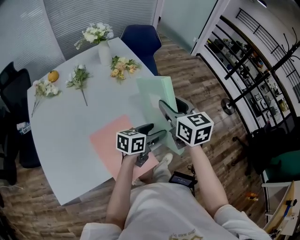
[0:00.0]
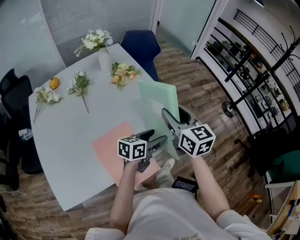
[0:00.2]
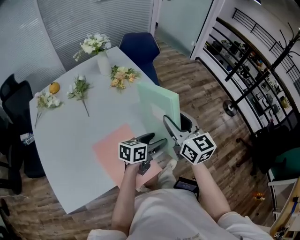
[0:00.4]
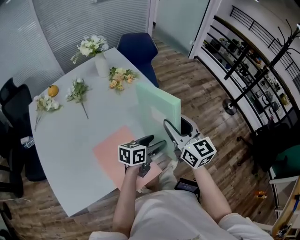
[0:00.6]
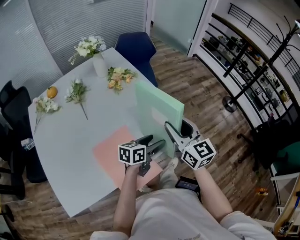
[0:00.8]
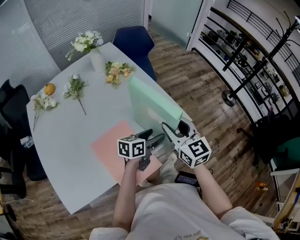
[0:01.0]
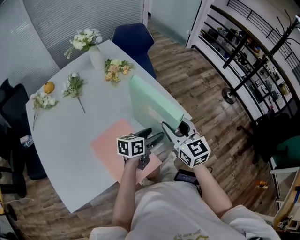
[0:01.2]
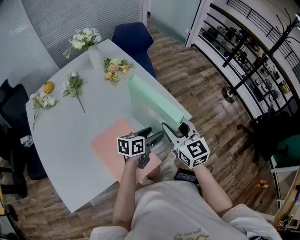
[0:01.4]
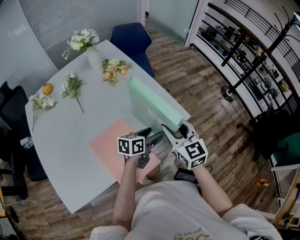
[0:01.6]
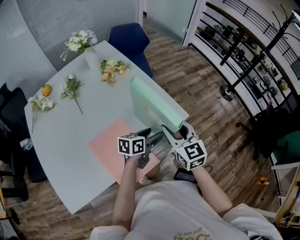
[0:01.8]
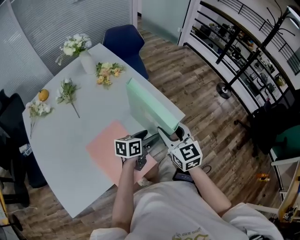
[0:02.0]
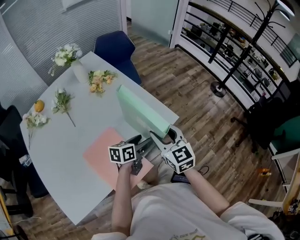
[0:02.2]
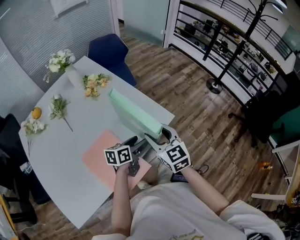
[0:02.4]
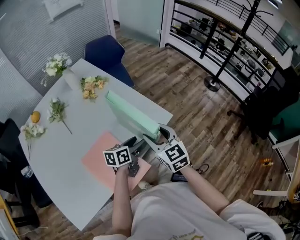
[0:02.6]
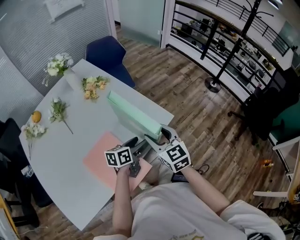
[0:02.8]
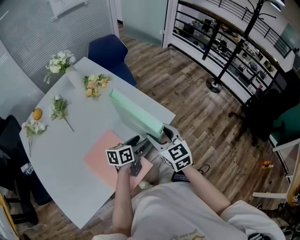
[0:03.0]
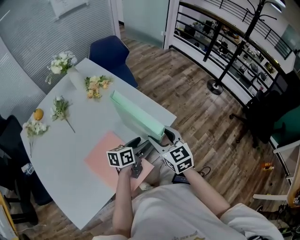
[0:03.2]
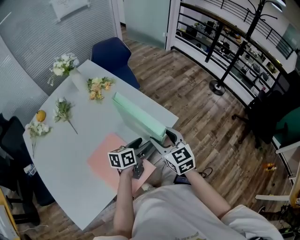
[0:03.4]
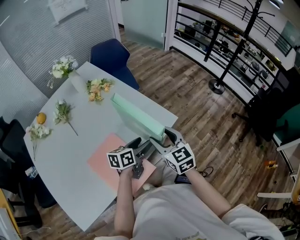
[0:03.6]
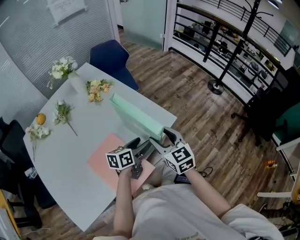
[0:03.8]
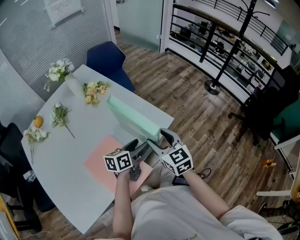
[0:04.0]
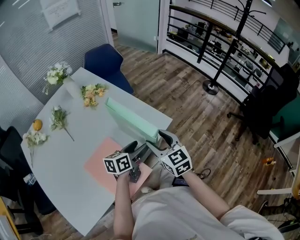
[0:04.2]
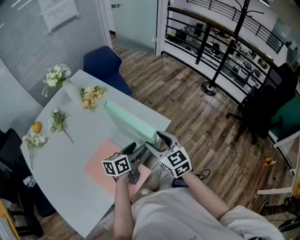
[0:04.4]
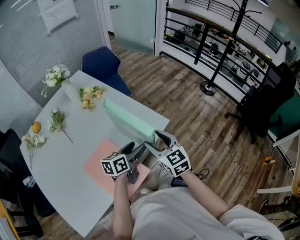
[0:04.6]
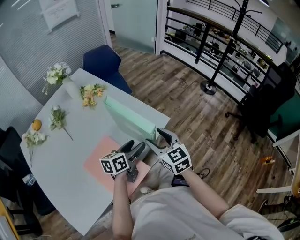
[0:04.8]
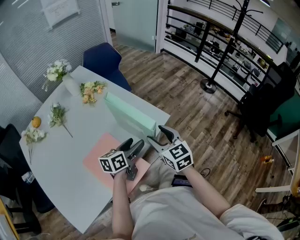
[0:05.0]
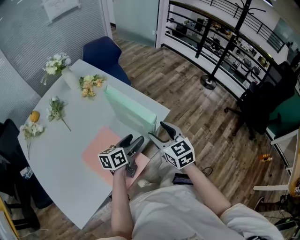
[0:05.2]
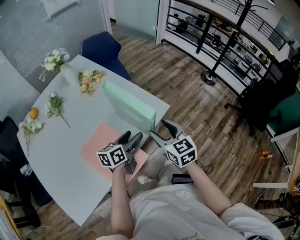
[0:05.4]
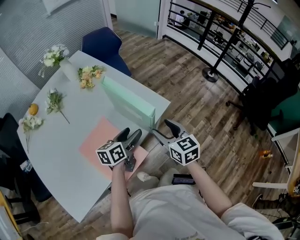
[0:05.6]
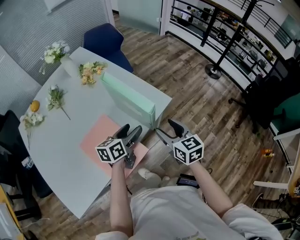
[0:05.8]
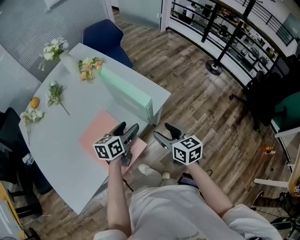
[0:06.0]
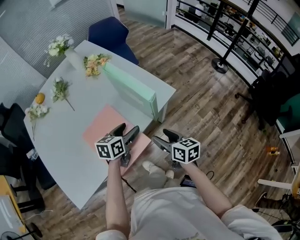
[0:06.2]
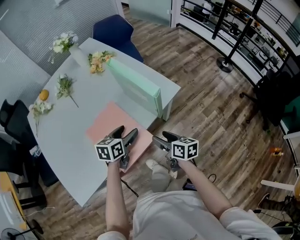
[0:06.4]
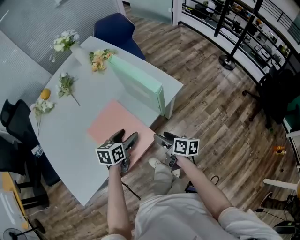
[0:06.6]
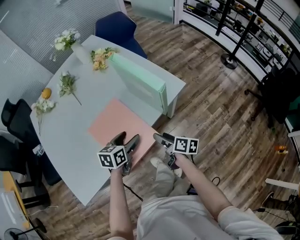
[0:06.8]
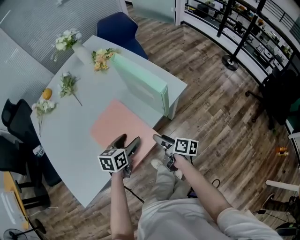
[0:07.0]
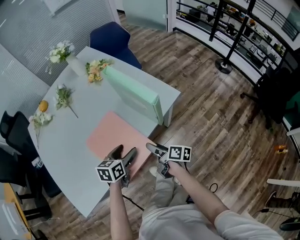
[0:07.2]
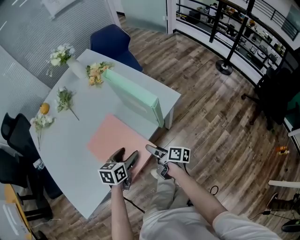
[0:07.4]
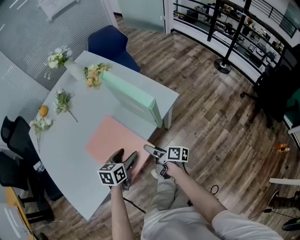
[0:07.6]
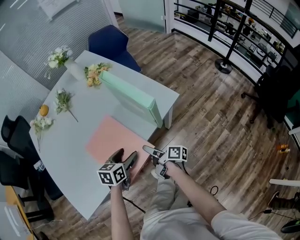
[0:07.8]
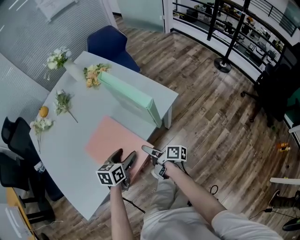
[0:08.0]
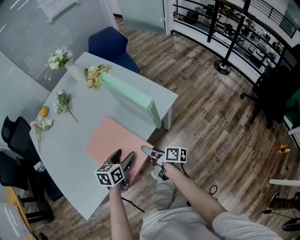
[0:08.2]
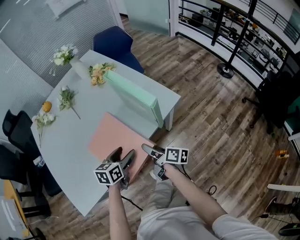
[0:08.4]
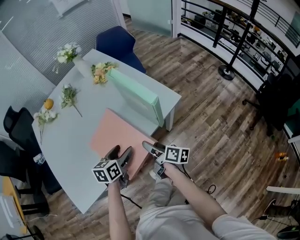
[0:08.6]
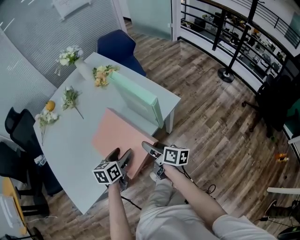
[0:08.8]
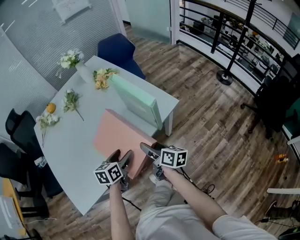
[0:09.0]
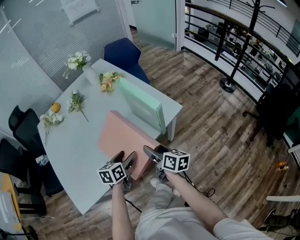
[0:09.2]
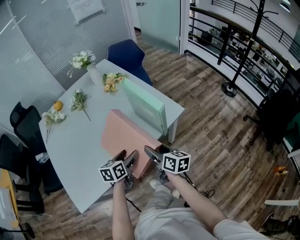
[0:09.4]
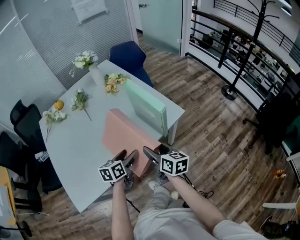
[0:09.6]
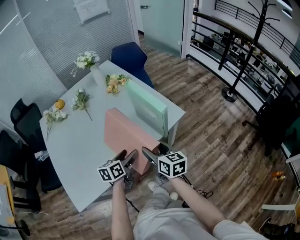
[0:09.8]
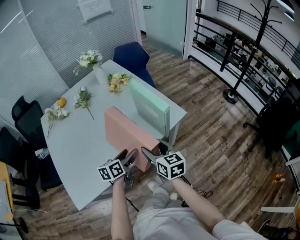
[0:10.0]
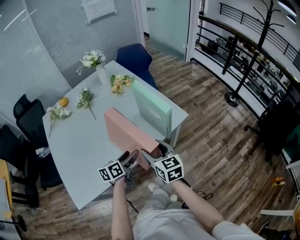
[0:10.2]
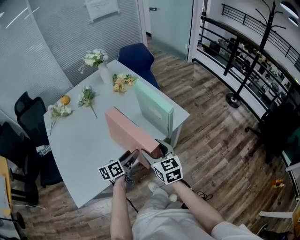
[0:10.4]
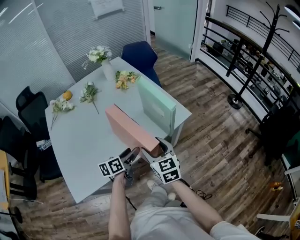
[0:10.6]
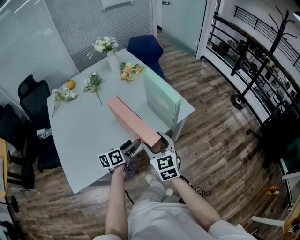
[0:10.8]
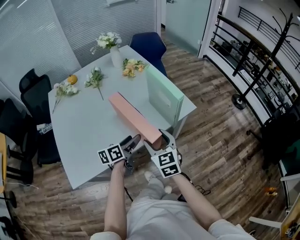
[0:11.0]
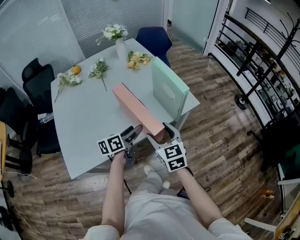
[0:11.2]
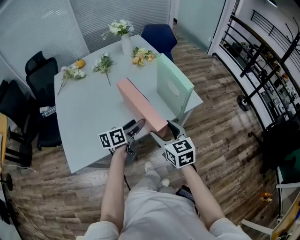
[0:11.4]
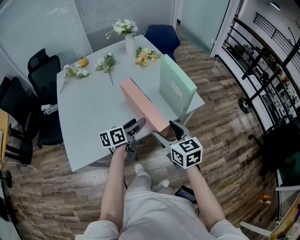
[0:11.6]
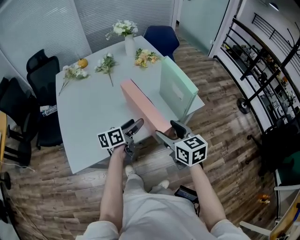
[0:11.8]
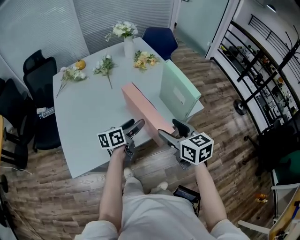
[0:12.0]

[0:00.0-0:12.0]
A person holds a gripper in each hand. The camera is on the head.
0:00.0 to 0:01.6: The left gripper moves downward, about 5 cm; the right gripper heads downward, backward and to the right, covering some 10 cm.
0:01.6 to 0:04.4: The grippers make only small movements.
0:04.4 to 0:06.0: The right gripper goes roughly 10 cm backward, downward and to the right, and swivels approximately 20 degrees.
0:06.0 to 0:07.6: The left gripper travels backward, to the left and downward by about 15 cm. The right gripper travels downward and to the left by some 20 cm, and rotates around the line of its fingers by some 50 degrees, clockwise from behind.
0:07.6 to 0:09.0: The right gripper heads upward, covering roughly 10 cm, and rotates roughly 20 degrees.
0:09.0 to 0:10.4: The right gripper goes some 10 cm upward, and twists approximately 50 degrees counterclockwise, seen from behind. Meanwhile the left gripper swivels about 20 degrees.
0:10.4 to 0:12.0: The right gripper heads upward, covering about 5 cm; the left gripper heads upward and to the left, covering some 10 cm.

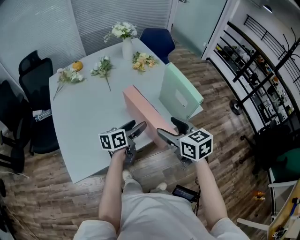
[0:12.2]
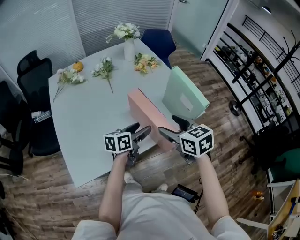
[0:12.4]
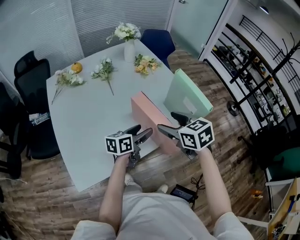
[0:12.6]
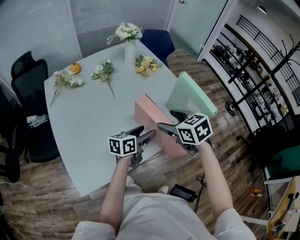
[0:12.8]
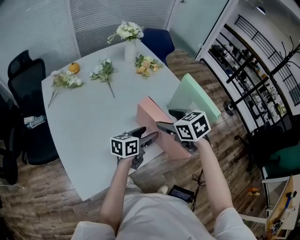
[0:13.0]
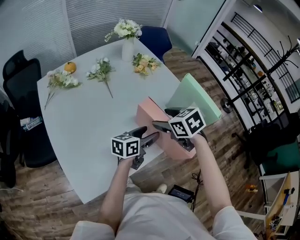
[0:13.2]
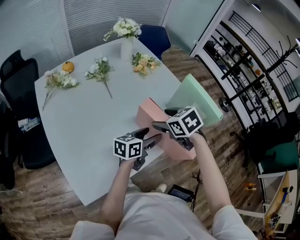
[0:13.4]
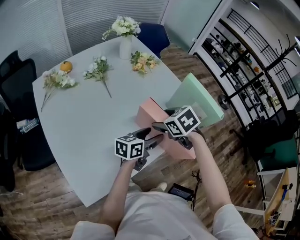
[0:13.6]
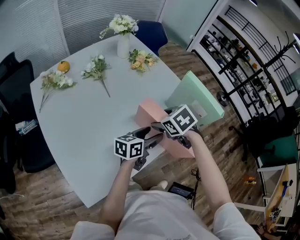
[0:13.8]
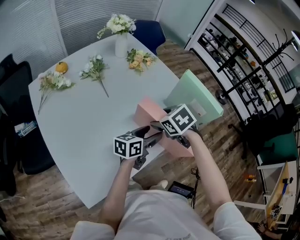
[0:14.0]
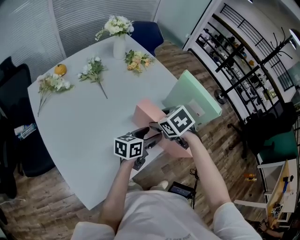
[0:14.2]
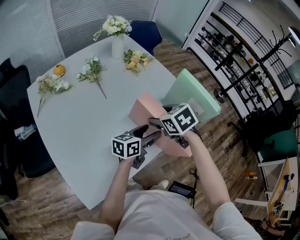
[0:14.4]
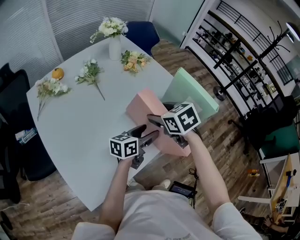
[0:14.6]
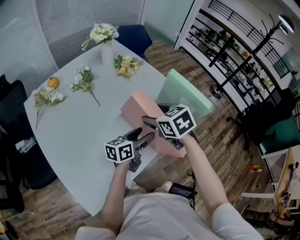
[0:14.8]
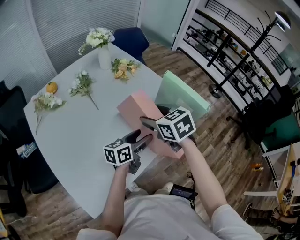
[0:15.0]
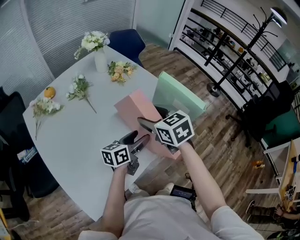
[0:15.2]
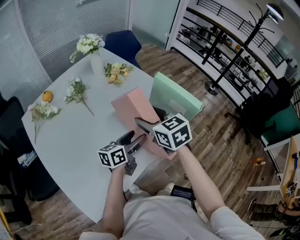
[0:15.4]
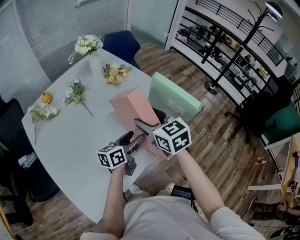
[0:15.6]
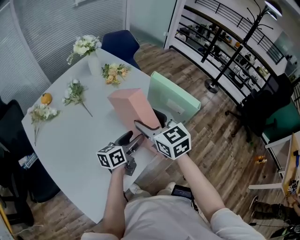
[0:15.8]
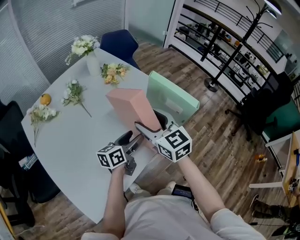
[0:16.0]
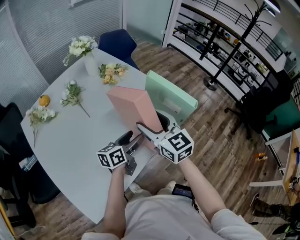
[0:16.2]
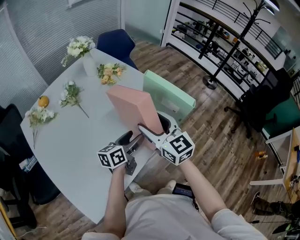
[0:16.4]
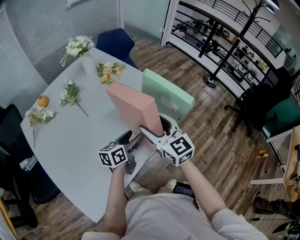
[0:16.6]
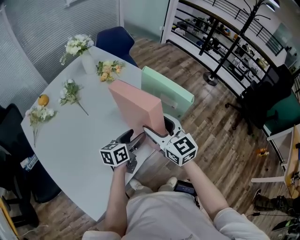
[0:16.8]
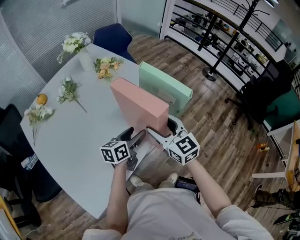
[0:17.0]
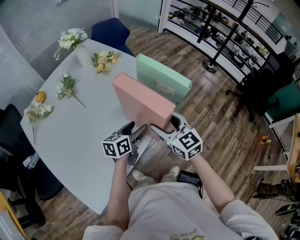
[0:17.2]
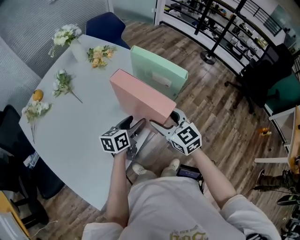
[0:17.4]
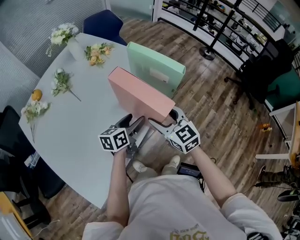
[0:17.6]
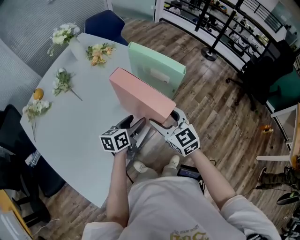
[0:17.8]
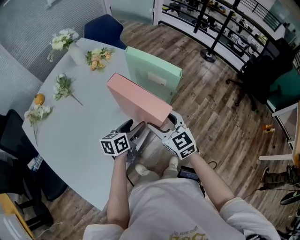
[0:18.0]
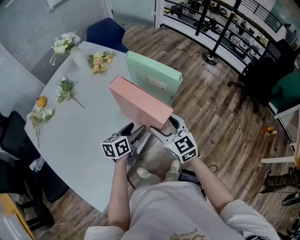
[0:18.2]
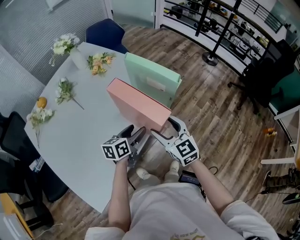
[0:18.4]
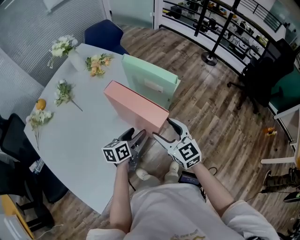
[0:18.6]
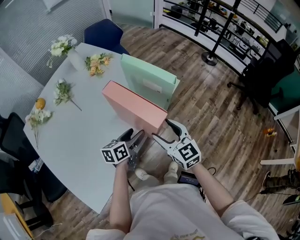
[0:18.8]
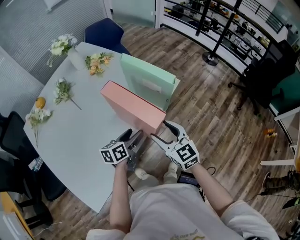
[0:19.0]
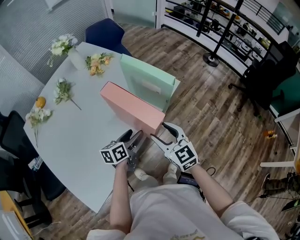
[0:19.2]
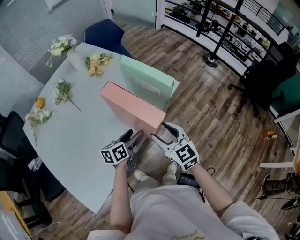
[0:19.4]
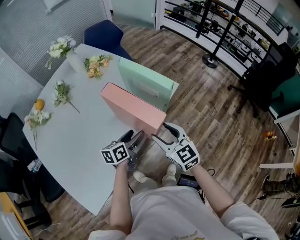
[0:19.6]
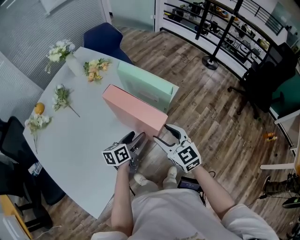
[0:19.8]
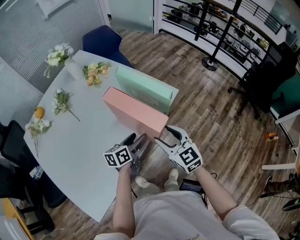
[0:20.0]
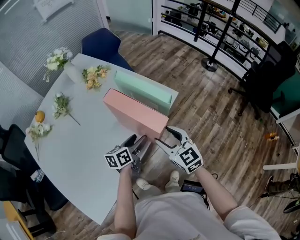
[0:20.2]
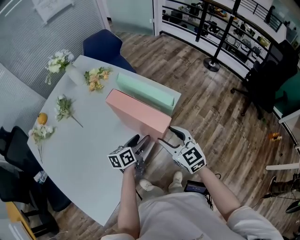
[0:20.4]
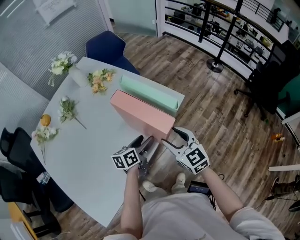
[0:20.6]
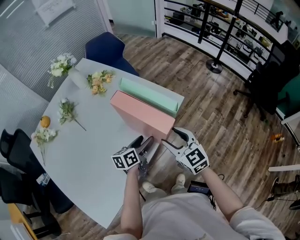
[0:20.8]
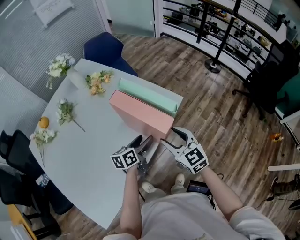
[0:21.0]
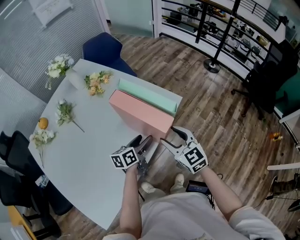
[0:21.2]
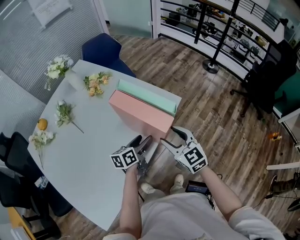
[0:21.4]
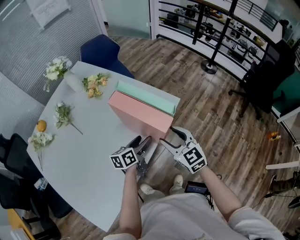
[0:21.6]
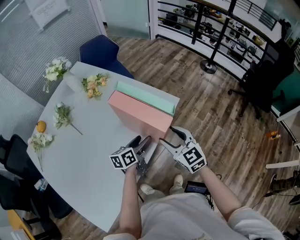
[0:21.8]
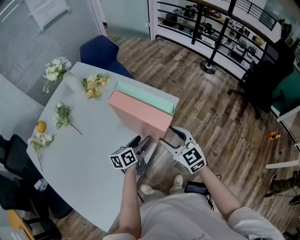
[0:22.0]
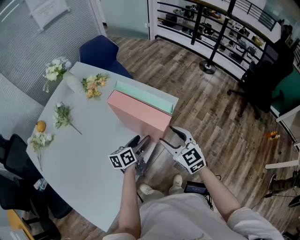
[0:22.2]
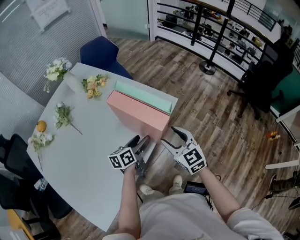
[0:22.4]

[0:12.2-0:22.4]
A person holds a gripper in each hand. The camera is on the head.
0:12.2 to 0:13.6: The right gripper moves forward, to the left and downward, roughly 20 cm, and points its fingers about 30 degrees further downward. The left gripper turns by some 20 degrees.
0:13.6 to 0:15.2: The right gripper is displaced upward by roughly 10 cm, and turns by approximately 30 degrees.
0:15.2 to 0:16.6: The right gripper is displaced to the right by roughly 10 cm, and turns by some 30 degrees.
0:16.6 to 0:18.0: The right gripper is displaced downward, to the right and backward by approximately 10 cm, while the left gripper shifts by roughly 5 cm.
0:18.0 to 0:19.4: The grippers stay close to where they were, moving slightly.
0:19.4 to 0:21.0: The two grippers go about 10 cm forward.
0:21.0 to 0:22.4: The grippers make only small movements.

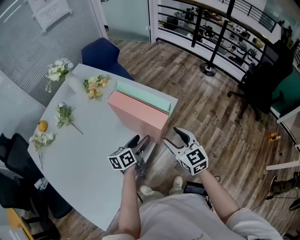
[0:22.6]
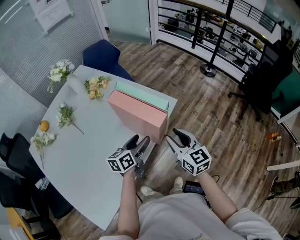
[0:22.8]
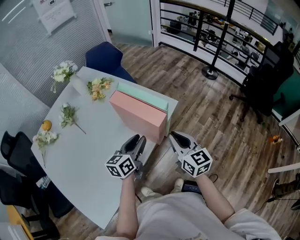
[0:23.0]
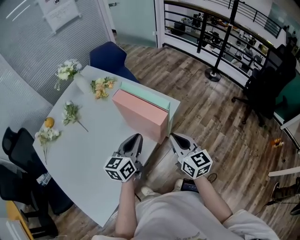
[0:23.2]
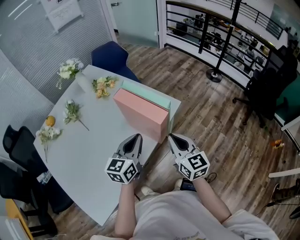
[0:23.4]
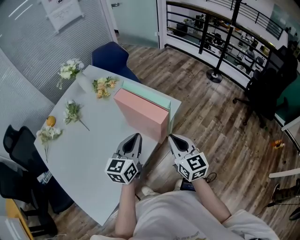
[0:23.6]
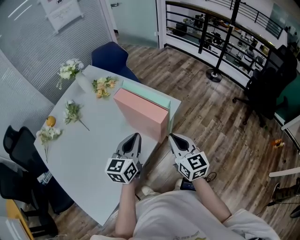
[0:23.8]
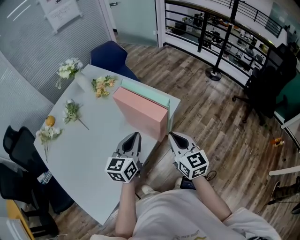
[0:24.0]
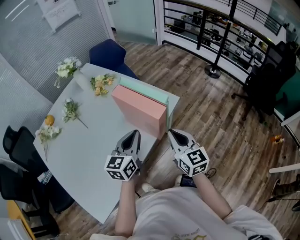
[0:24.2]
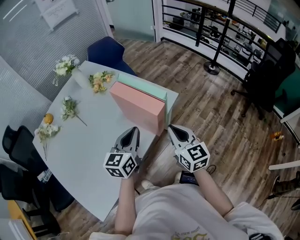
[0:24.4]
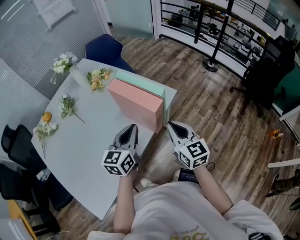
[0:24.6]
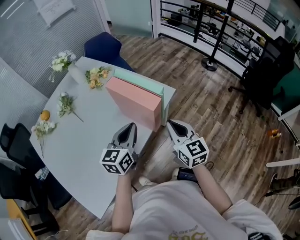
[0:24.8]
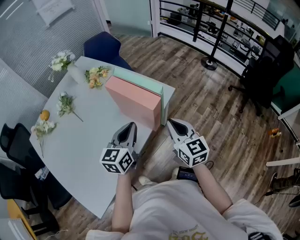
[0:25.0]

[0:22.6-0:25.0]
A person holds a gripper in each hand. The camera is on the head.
0:22.6 to 0:23.8: The right gripper moves some 5 cm, and closes its fingers; the left gripper moves upward, about 15 cm, swivels about 30 degrees, and closes.
0:23.8 to 0:25.0: There are only small adjustments of the grippers.
